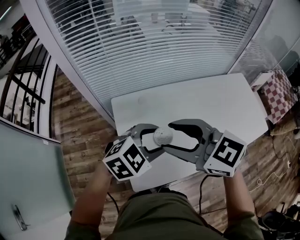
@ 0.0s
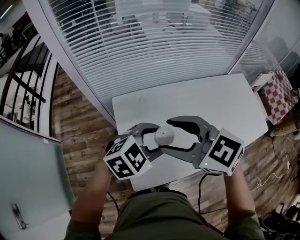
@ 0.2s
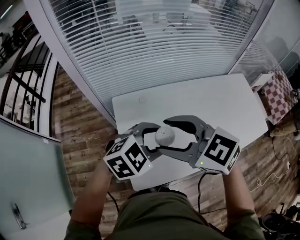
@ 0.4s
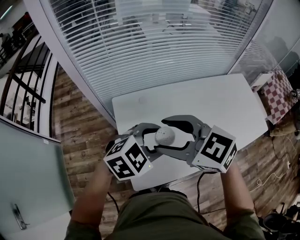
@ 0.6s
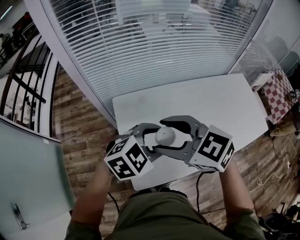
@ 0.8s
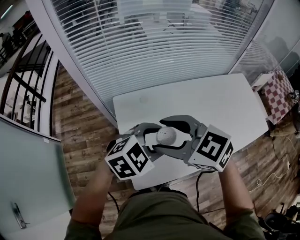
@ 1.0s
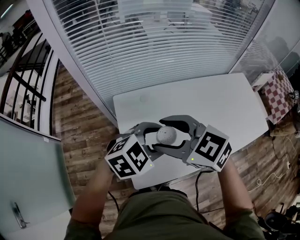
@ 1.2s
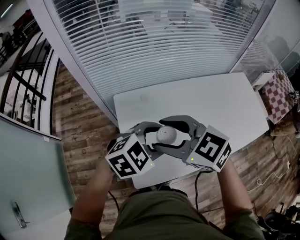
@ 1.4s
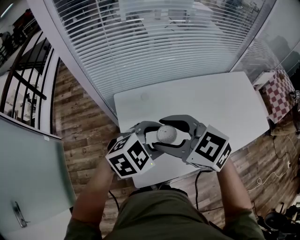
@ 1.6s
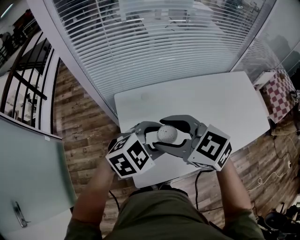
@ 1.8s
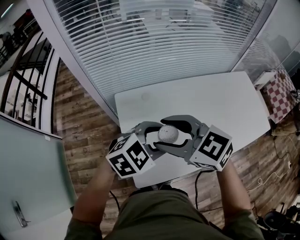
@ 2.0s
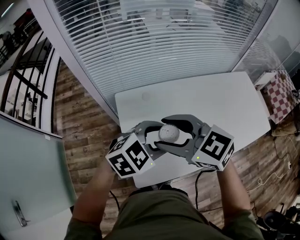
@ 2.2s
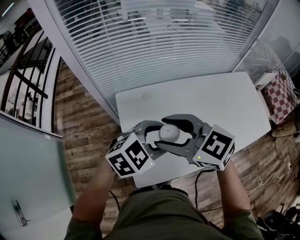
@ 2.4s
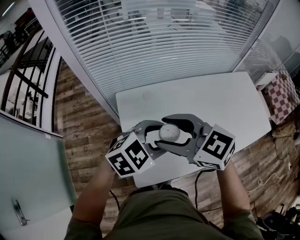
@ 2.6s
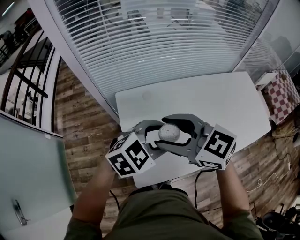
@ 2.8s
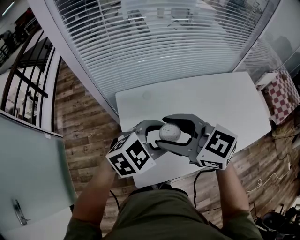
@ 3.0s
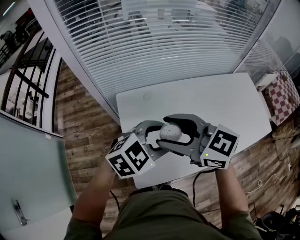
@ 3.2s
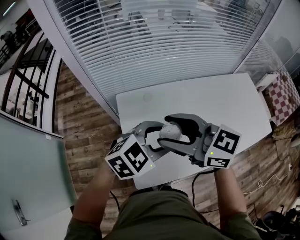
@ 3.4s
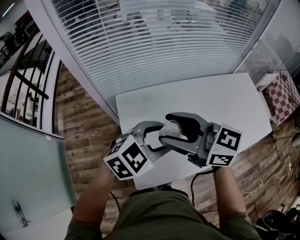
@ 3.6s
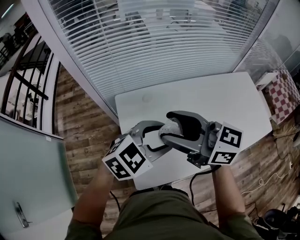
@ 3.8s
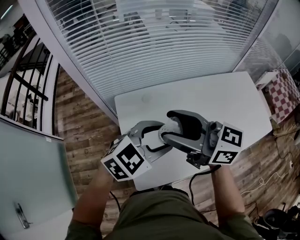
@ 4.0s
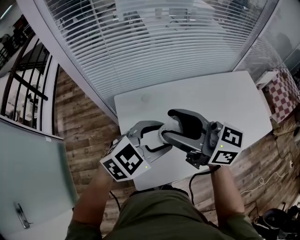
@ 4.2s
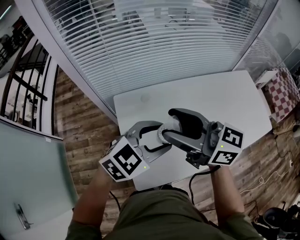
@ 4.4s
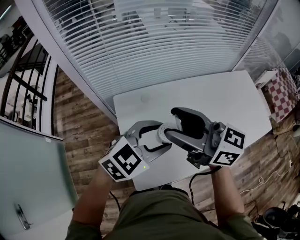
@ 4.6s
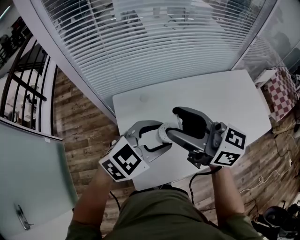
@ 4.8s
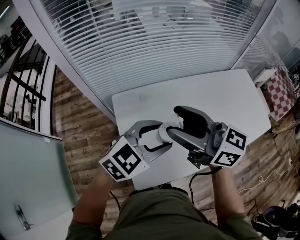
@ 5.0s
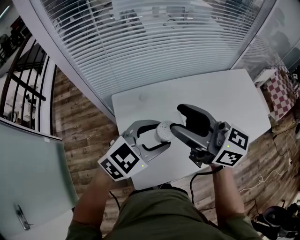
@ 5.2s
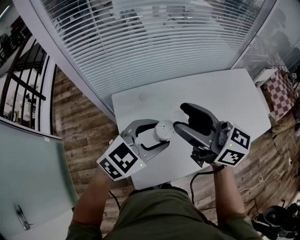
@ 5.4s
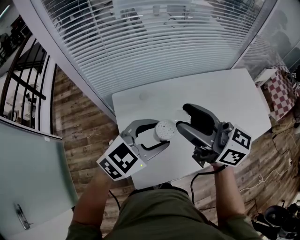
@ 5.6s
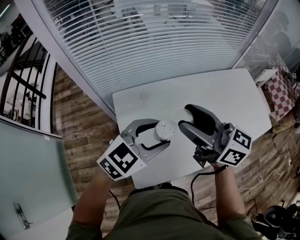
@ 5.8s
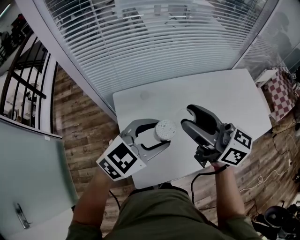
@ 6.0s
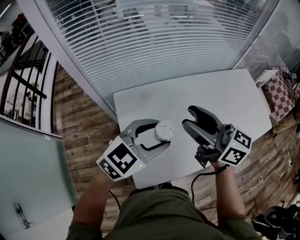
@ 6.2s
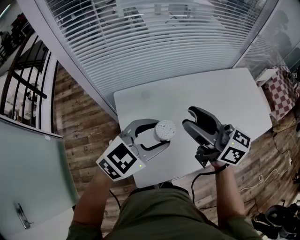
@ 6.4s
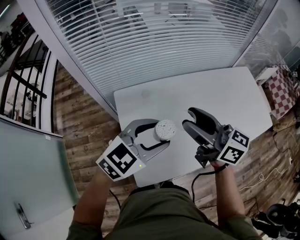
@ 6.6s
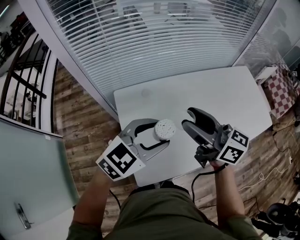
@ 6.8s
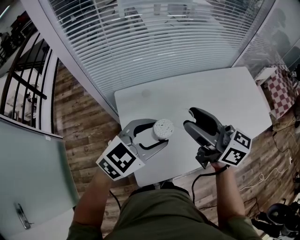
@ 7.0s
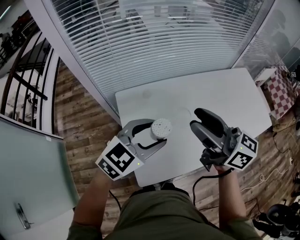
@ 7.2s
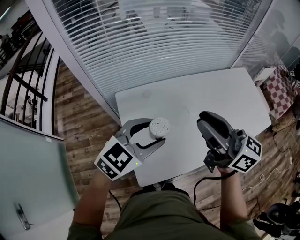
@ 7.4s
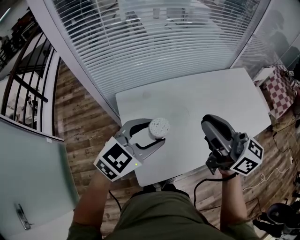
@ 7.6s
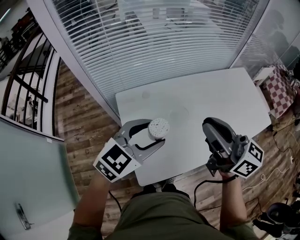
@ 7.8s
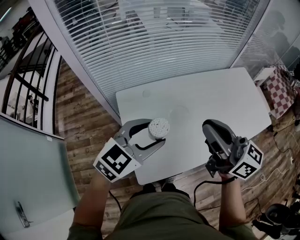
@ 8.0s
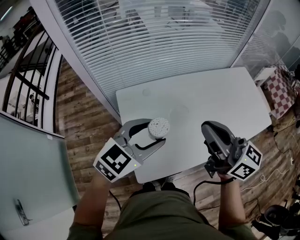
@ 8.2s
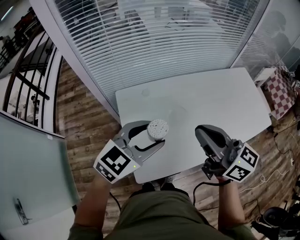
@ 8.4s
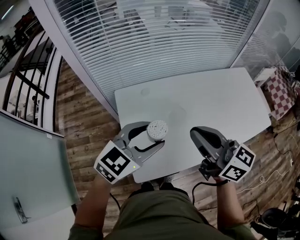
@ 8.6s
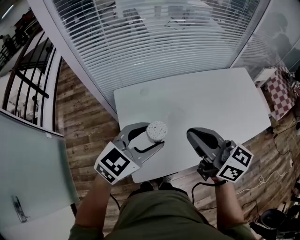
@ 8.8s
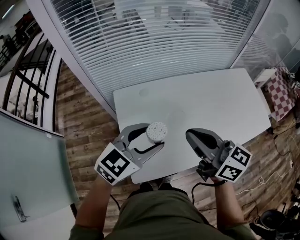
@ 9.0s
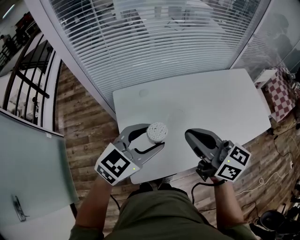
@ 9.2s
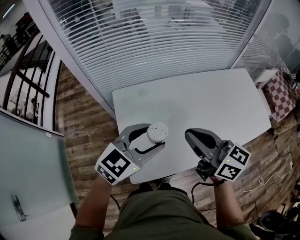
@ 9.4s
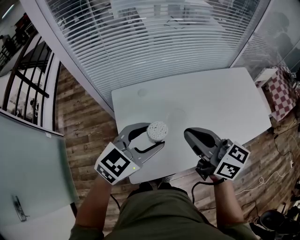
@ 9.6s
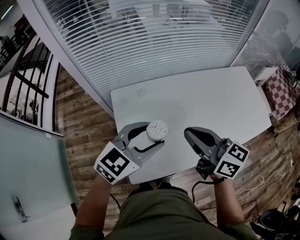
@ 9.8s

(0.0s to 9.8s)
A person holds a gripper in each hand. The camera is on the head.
0.0s - 1.4s: The right gripper moves about 5 cm.
1.4s - 2.8s: The grippers make only small movements.
2.8s - 4.2s: The right gripper moves about 5 cm, and swivels roughly 30 degrees.
4.2s - 5.6s: There are only small adjustments of the grippers.
5.6s - 7.0s: The grippers make only small movements.
7.0s - 8.4s: The right gripper travels backward by some 5 cm, and closes.
8.4s - 9.8s: The right gripper goes some 5 cm downward.

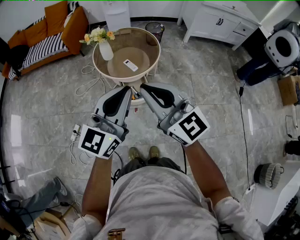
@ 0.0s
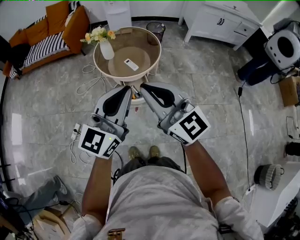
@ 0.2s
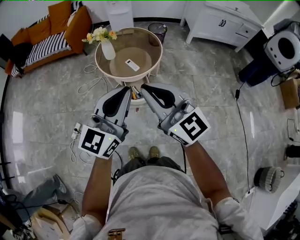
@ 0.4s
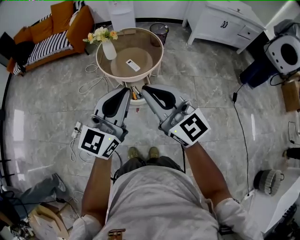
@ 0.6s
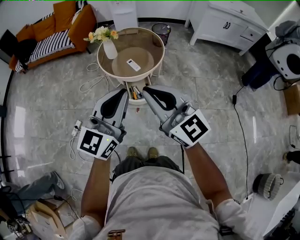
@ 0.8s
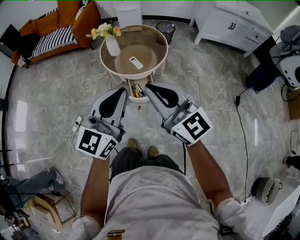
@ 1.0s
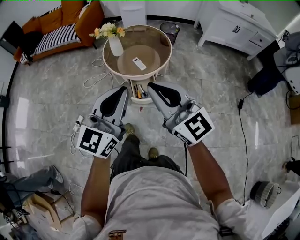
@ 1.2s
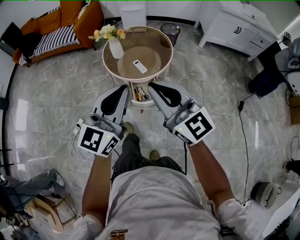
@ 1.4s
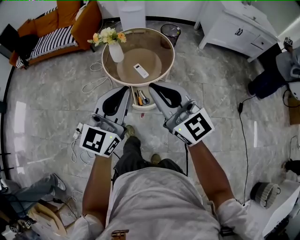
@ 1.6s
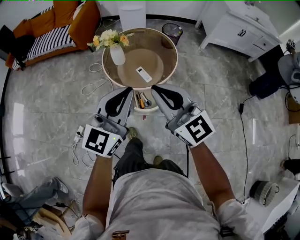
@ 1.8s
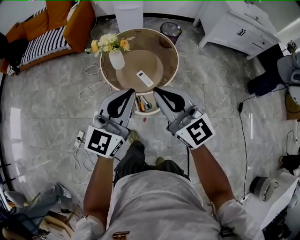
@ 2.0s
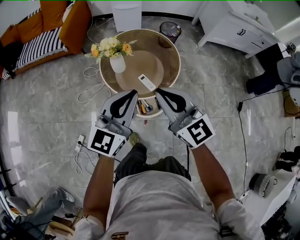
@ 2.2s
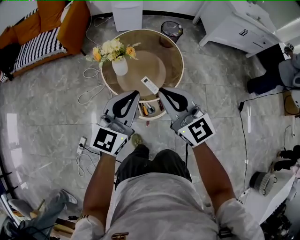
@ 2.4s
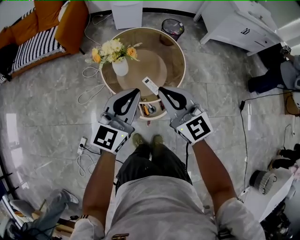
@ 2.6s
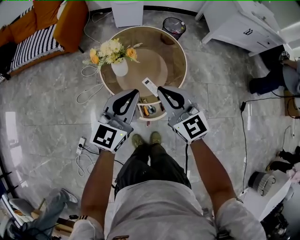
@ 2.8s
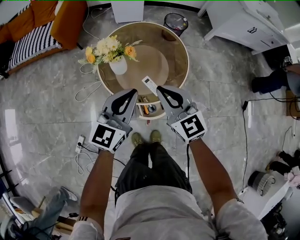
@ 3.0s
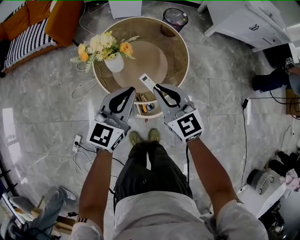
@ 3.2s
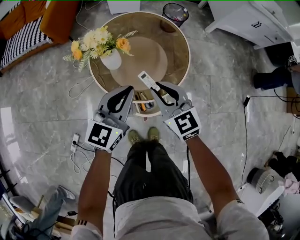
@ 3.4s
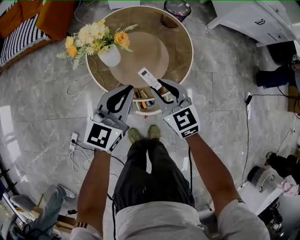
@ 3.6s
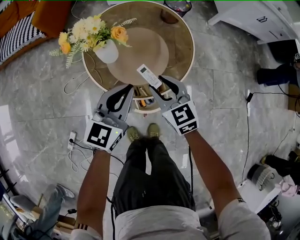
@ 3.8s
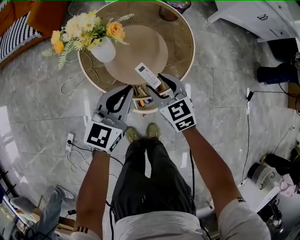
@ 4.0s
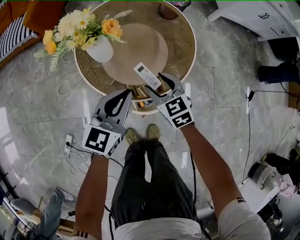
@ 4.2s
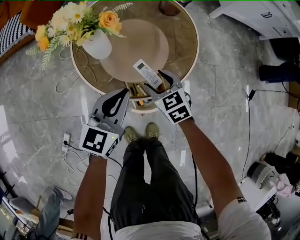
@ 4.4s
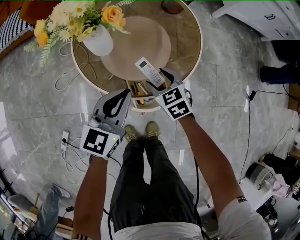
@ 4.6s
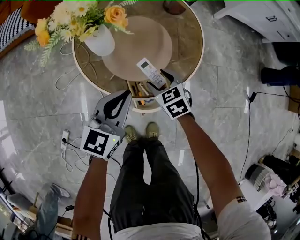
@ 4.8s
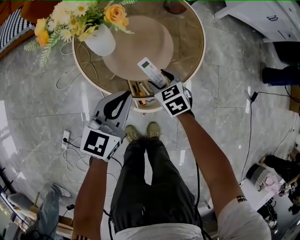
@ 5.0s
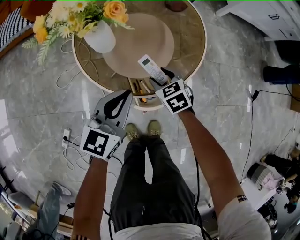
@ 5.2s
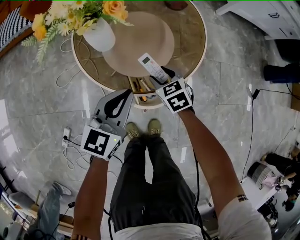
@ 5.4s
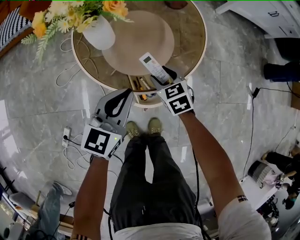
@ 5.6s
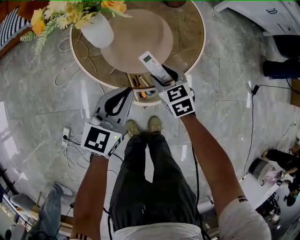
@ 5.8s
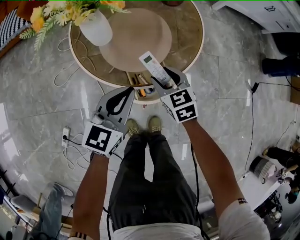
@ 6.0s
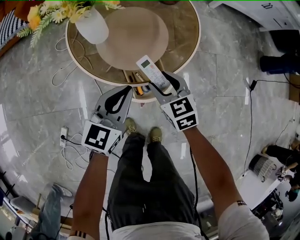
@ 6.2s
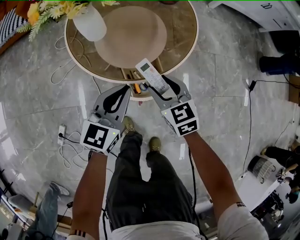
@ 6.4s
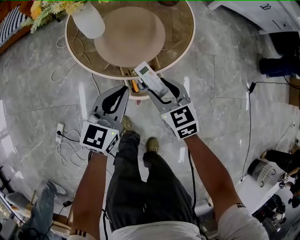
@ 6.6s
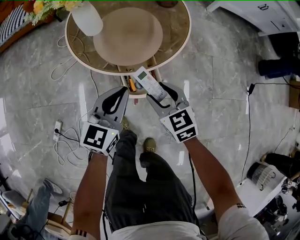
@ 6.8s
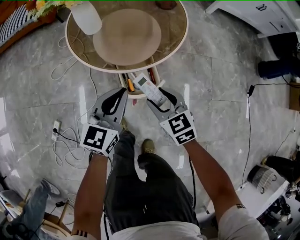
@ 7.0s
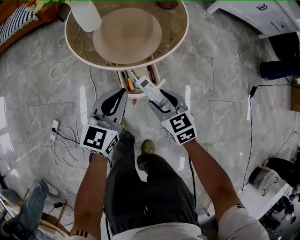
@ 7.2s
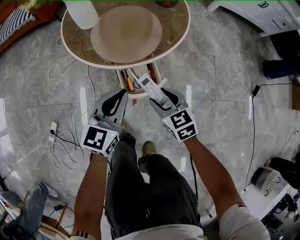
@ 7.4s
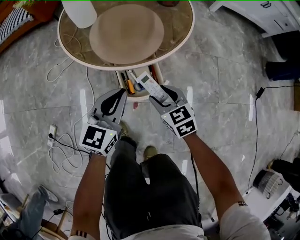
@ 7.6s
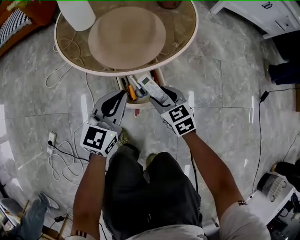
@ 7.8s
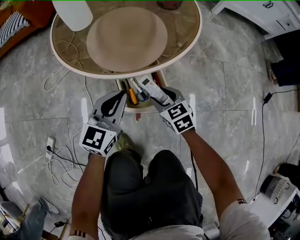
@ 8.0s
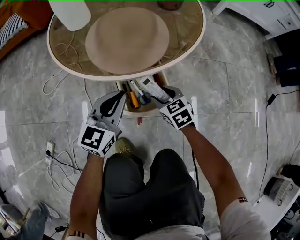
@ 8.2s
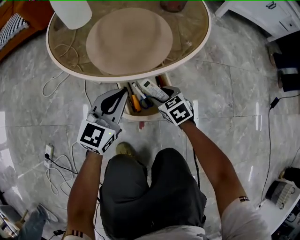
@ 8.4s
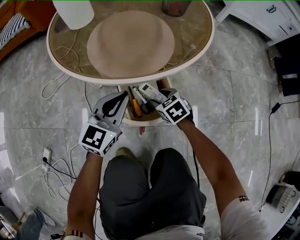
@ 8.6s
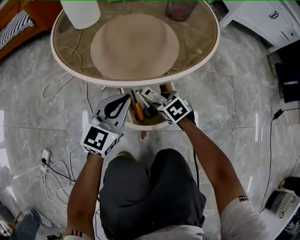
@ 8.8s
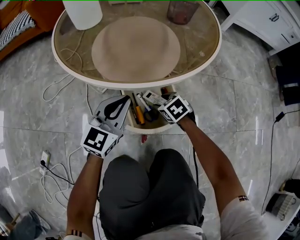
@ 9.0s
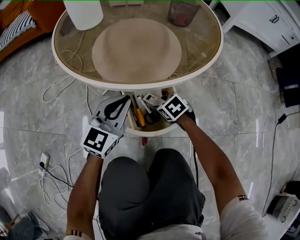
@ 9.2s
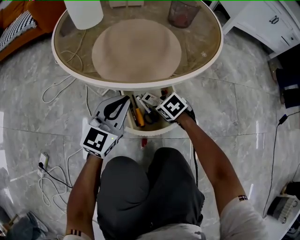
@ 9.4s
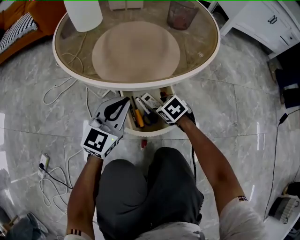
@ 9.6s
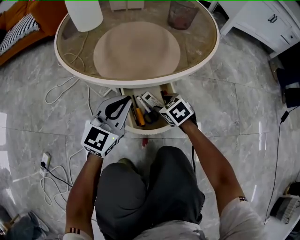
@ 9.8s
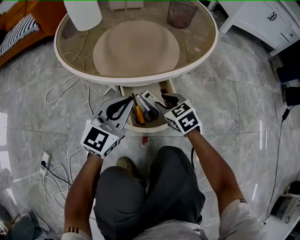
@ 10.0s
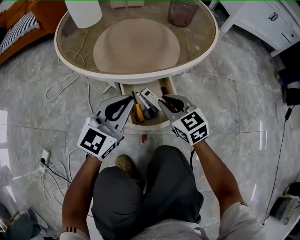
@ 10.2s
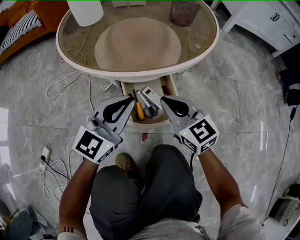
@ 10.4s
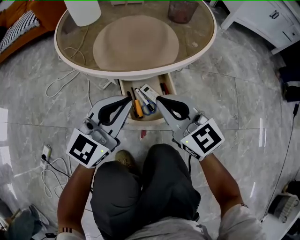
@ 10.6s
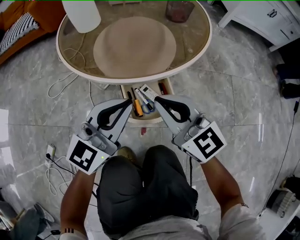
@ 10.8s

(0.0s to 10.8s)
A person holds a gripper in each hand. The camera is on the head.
0.0s - 1.6s: The grippers both shift forward by roughly 10 cm.
1.6s - 3.0s: Both grippers travel together forward and downward, about 35 cm. The right gripper rotates approximately 20 degrees.
3.0s - 4.6s: The right gripper goes some 35 cm downward, angles its fingers downward, by approximately 30 degrees, and opens; the left gripper heads downward, covering roughly 25 cm.
4.6s - 6.2s: The left gripper moves some 5 cm, while the right gripper shifts roughly 5 cm backward.
6.2s - 7.8s: The left gripper shifts about 15 cm downward and backward. Meanwhile the right gripper heads downward, backward and to the right, covering some 20 cm.
7.8s - 9.2s: The right gripper shifts roughly 20 cm downward, and changes its angle by roughly 30 degrees; the left gripper heads downward and forward, covering roughly 15 cm.
9.2s - 10.8s: The left gripper is displaced upward and backward by approximately 15 cm, while the right gripper is displaced upward by about 35 cm, tilts its fingers roughly 60 degrees upward, and closes.

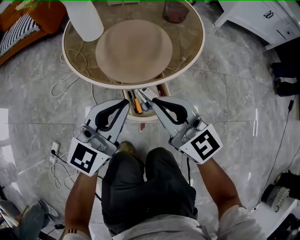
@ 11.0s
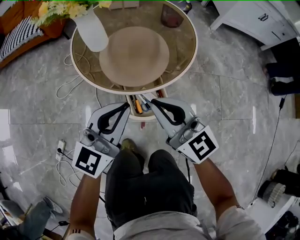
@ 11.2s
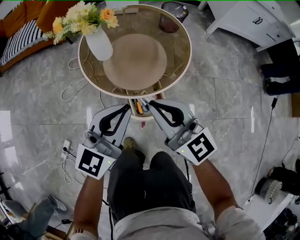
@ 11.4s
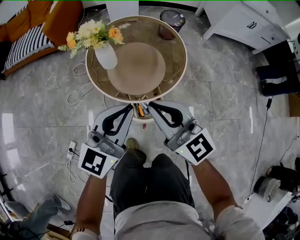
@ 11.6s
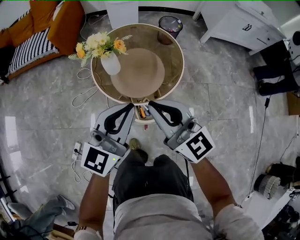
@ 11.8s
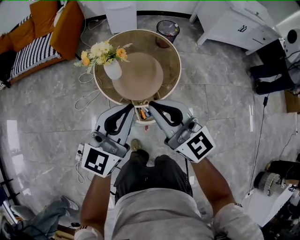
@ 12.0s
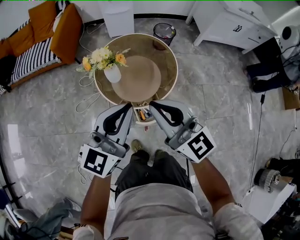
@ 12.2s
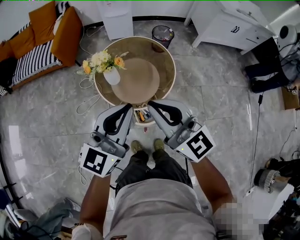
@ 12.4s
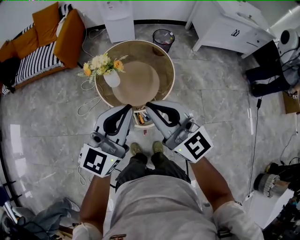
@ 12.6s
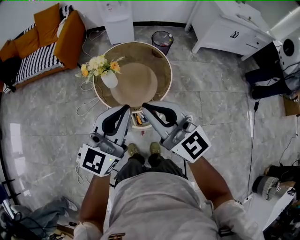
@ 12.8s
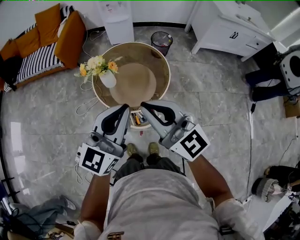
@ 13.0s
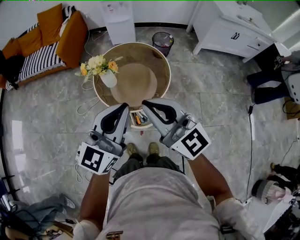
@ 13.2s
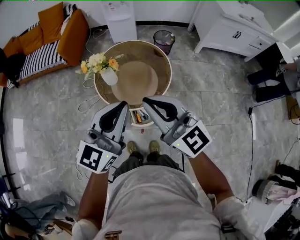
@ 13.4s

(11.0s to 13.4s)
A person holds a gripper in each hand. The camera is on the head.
11.0s - 12.2s: Both grippers travel together upward, approximately 40 cm.
12.2s - 13.4s: The grippers both shift to the right and upward by roughly 10 cm.

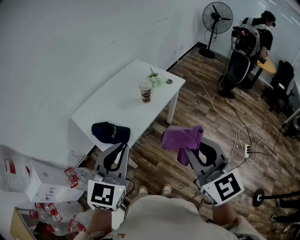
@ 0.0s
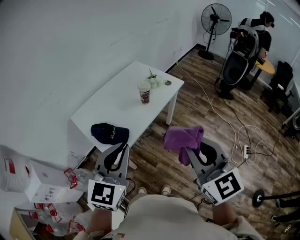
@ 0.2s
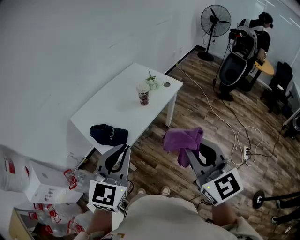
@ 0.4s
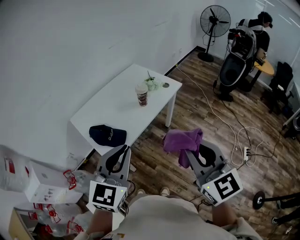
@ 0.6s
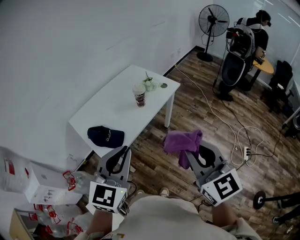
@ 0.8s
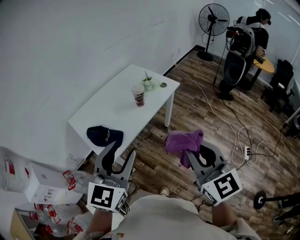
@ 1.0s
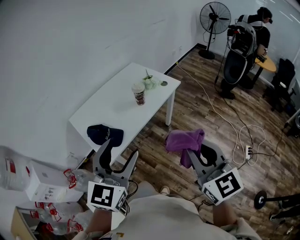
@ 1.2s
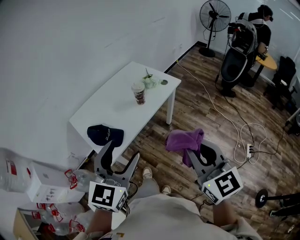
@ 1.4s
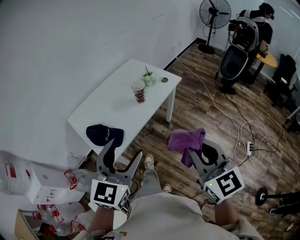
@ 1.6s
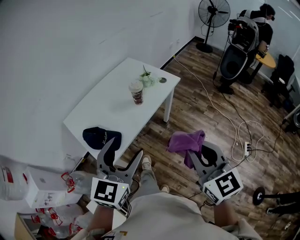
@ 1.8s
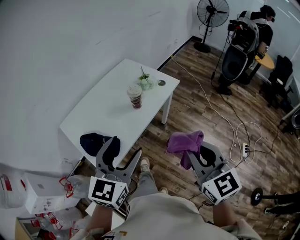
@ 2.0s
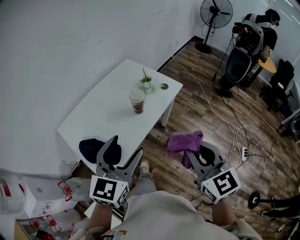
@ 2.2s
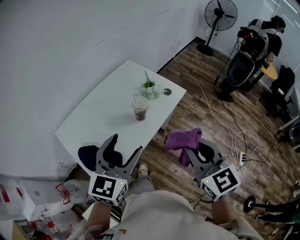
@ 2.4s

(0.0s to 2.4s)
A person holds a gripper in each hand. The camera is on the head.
0.0s - 1.2s: The two grippers go roughly 5 cm to the right. The left gripper opens its fingers.
1.2s - 2.4s: The grippers both shift forward by approximately 25 cm.
